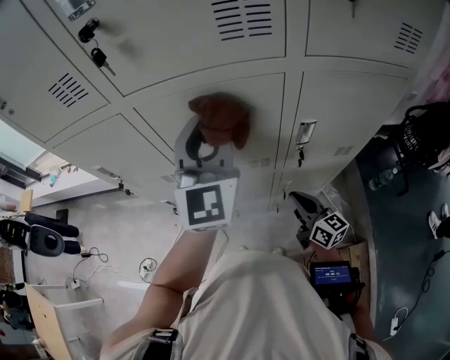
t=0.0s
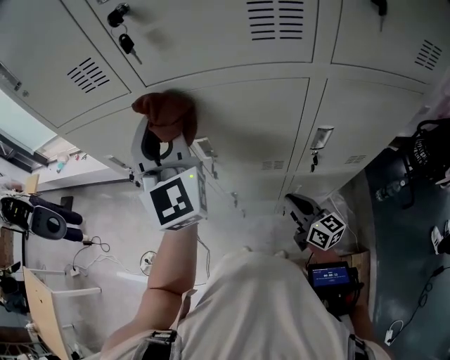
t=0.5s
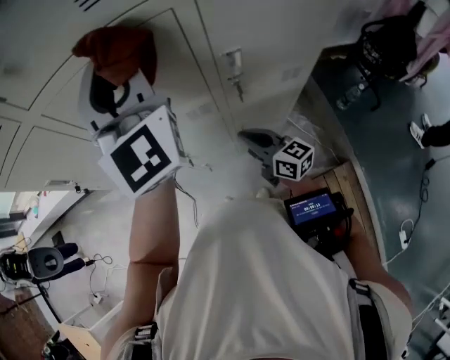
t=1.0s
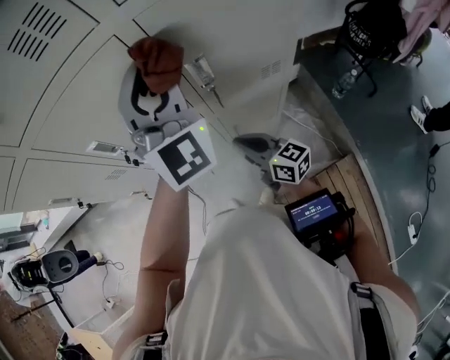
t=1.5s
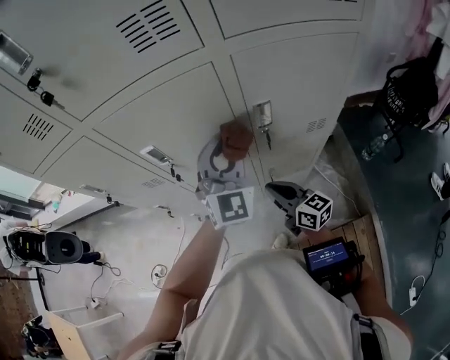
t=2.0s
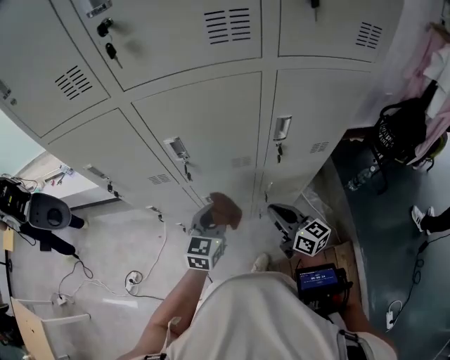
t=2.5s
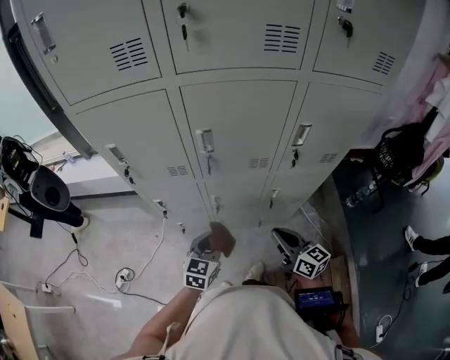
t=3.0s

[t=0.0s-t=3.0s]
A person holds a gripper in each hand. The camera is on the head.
t=0.0s to t=1.5s: The left gripper travels to the right by roughly 15 cm, and changes its angle by about 30 degrees.
t=1.5s to t=3.0s: The right gripper moves backward and to the left, about 10 cm. Meanwhile the left gripper goes about 40 cm downward, to the left and backward, and angles its fingers downward, by about 40 degrees.

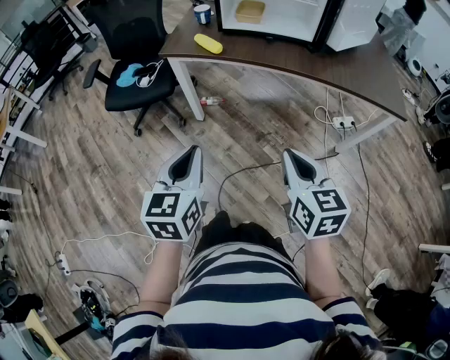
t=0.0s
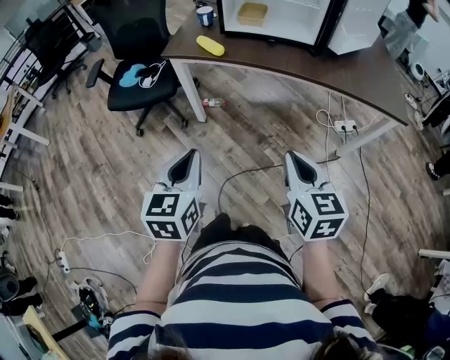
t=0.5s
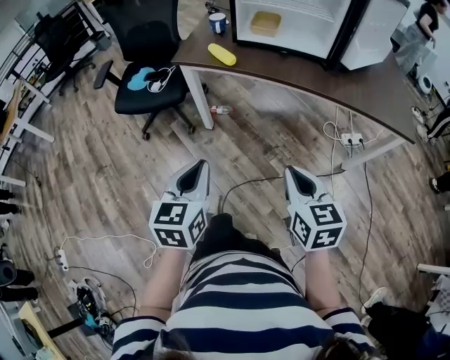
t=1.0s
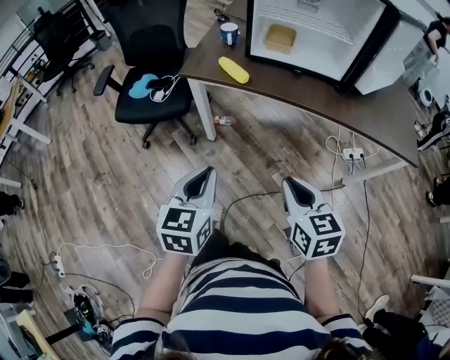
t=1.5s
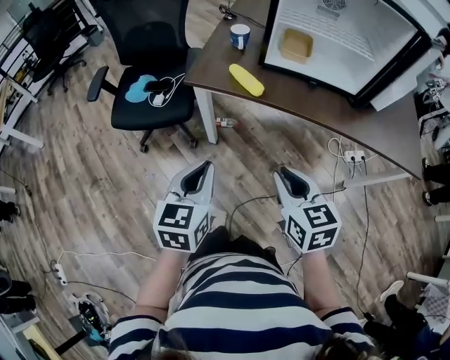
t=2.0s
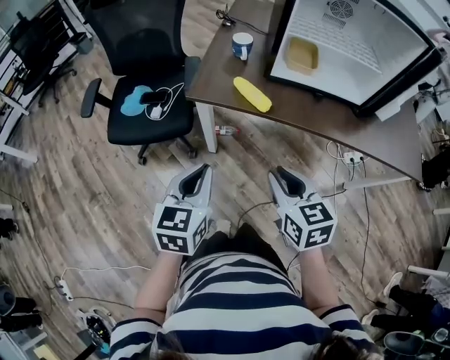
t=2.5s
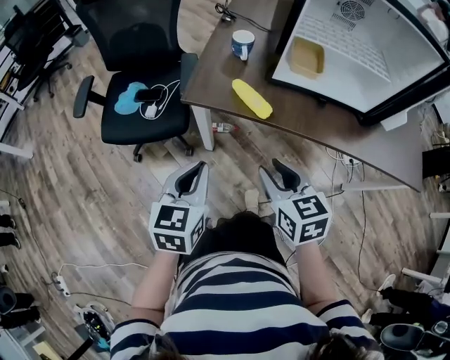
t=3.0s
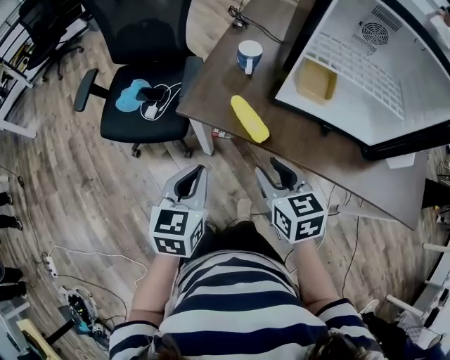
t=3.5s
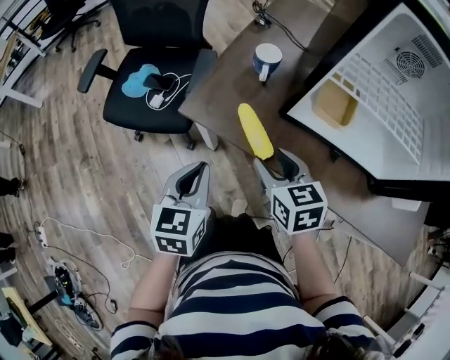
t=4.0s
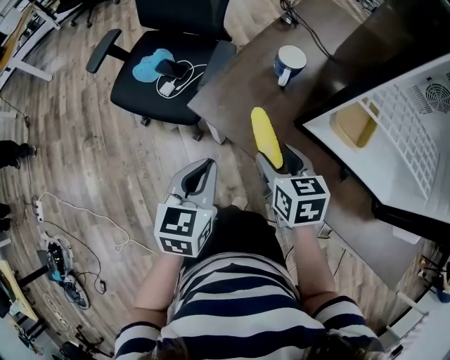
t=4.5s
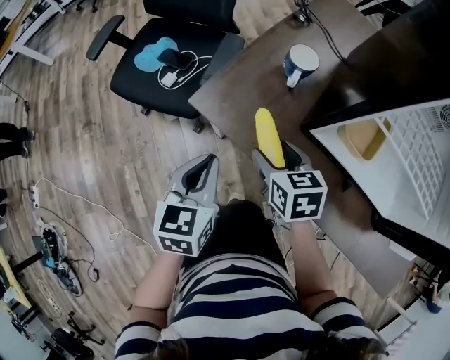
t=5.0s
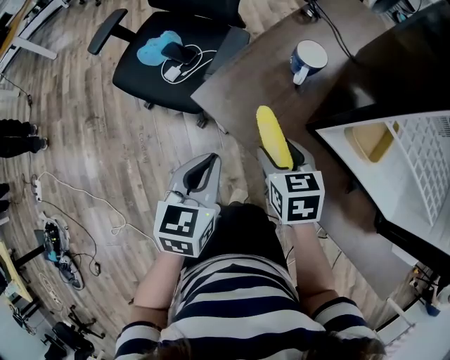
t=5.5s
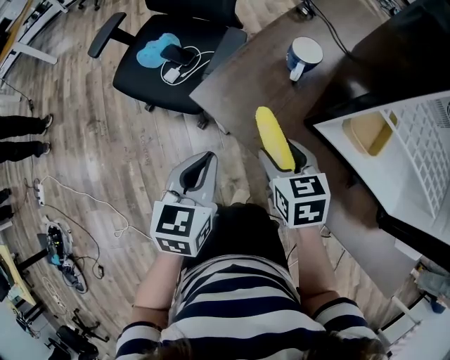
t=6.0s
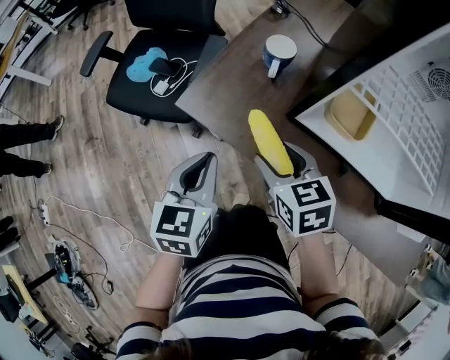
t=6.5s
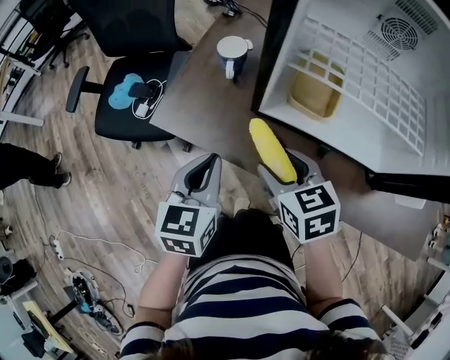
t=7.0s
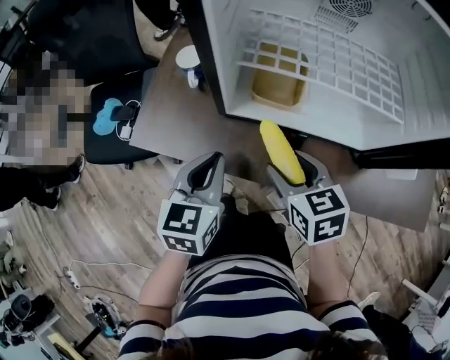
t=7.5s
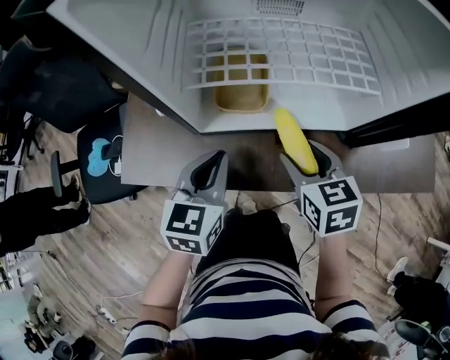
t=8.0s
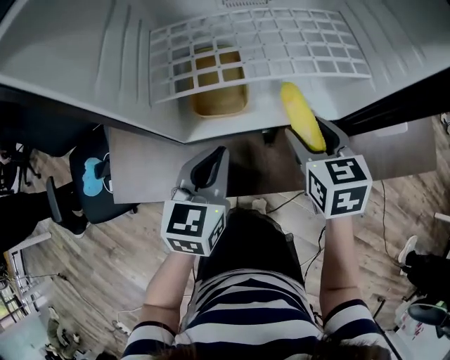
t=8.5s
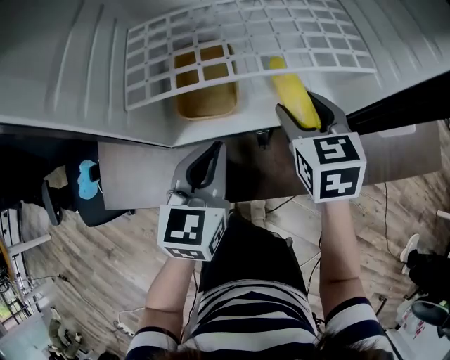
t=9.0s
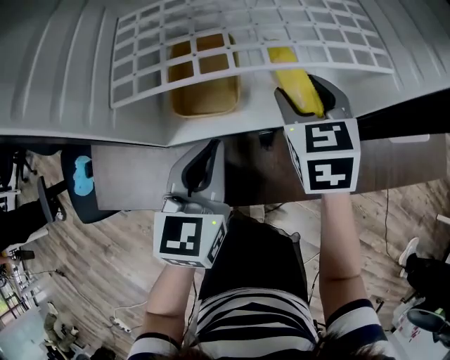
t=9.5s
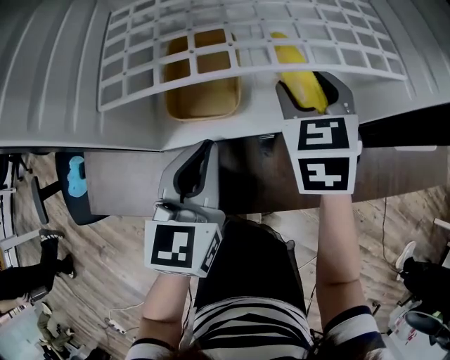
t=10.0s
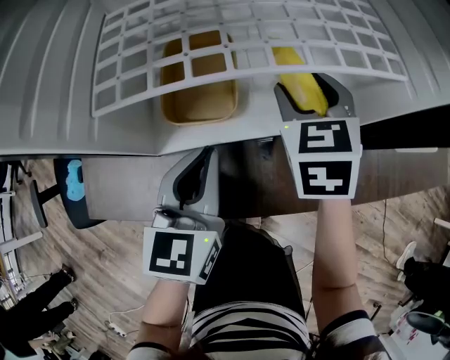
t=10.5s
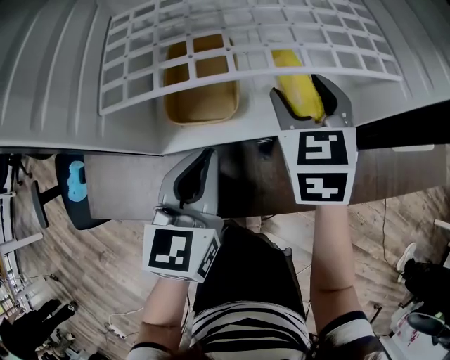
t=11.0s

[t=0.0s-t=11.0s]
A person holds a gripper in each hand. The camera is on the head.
t=0.0s to t=2.0s: Both grippers move forward and to the left, roughly 25 cm.
t=2.0s to t=3.5s: The grippers both shift forward by roughly 20 cm.
t=3.5s to t=5.5s: The right gripper moves forward and downward, some 20 cm, and swivels some 20 degrees; the left gripper shifts approximately 10 cm forward and downward.
t=5.5s to t=7.5s: The right gripper shifts roughly 20 cm to the right and backward, and rotates roughly 20 degrees. The left gripper is displaced to the right by about 20 cm, and changes its angle by about 30 degrees.
t=7.5s to t=9.0s: The grippers both shift to the right and forward by roughly 15 cm. The right gripper turns by some 30 degrees.
t=9.0s to t=11.0s: The grippers stay close to where they were, moving slightly.

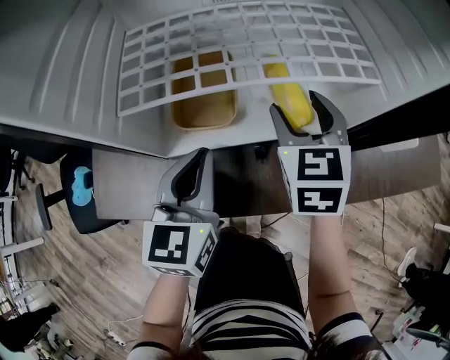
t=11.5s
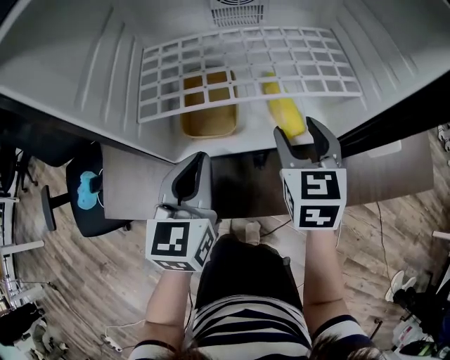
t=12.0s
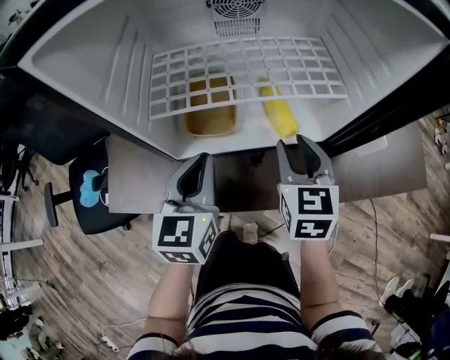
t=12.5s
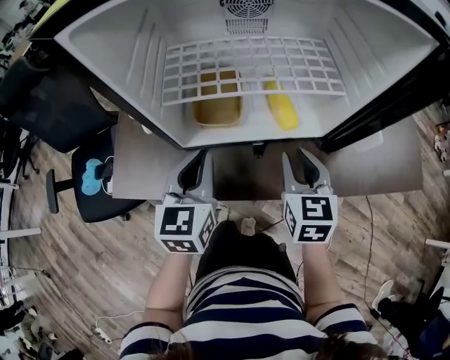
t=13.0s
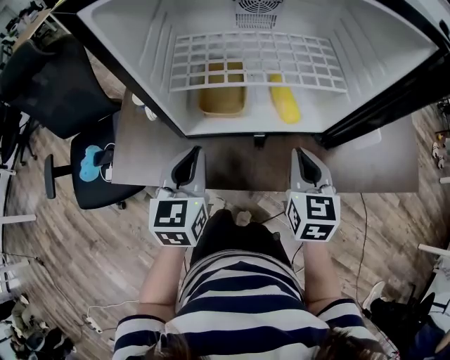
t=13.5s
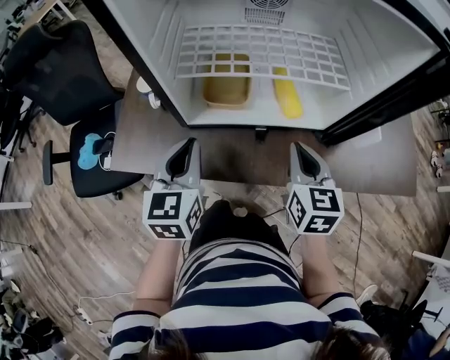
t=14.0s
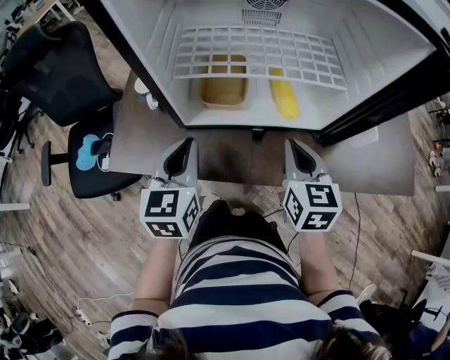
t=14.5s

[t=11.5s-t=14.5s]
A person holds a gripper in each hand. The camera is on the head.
t=11.5s to t=13.0s: The right gripper is displaced backward by some 10 cm, and closes; the left gripper changes place by some 5 cm.
t=13.0s to t=14.5s: The grippers stay close to where they were, moving slightly.

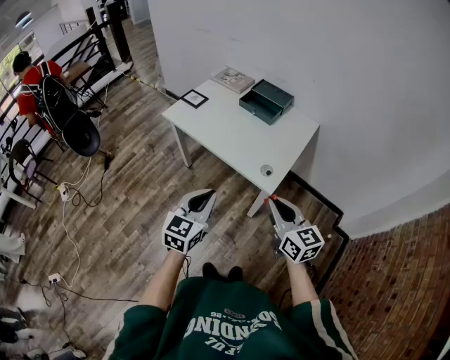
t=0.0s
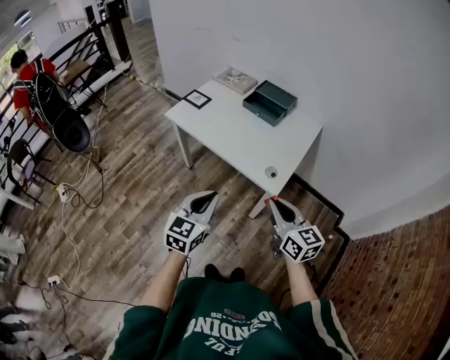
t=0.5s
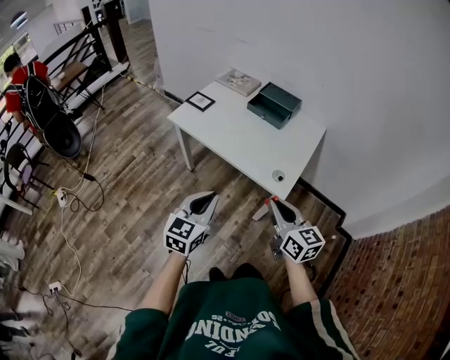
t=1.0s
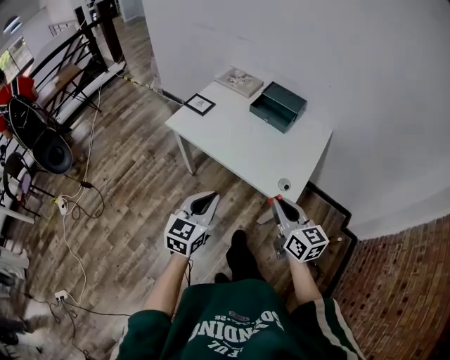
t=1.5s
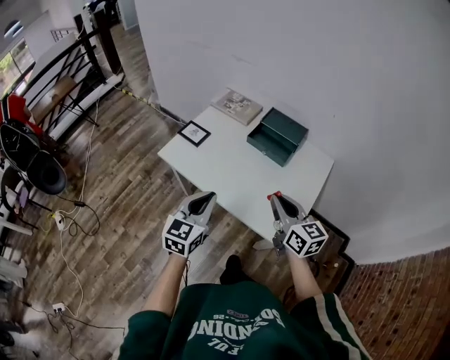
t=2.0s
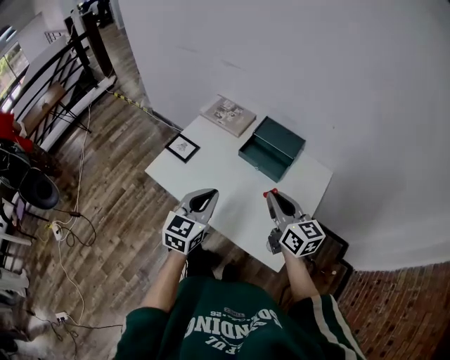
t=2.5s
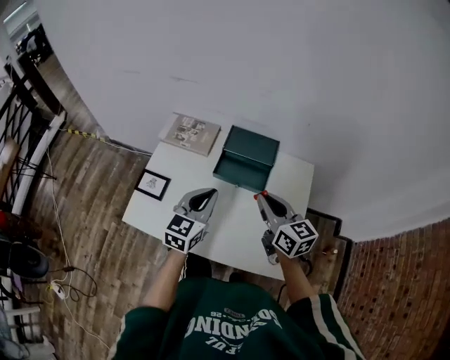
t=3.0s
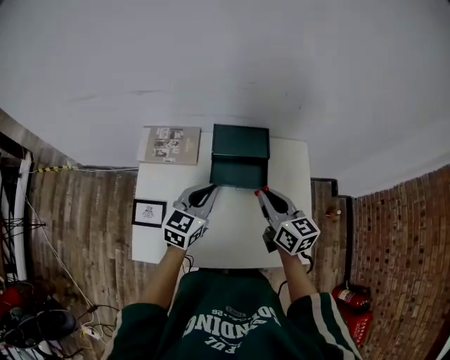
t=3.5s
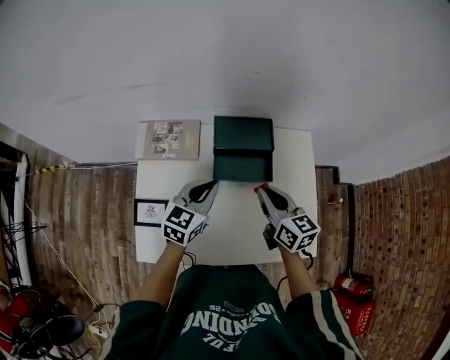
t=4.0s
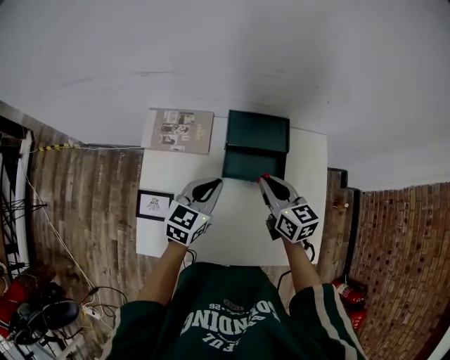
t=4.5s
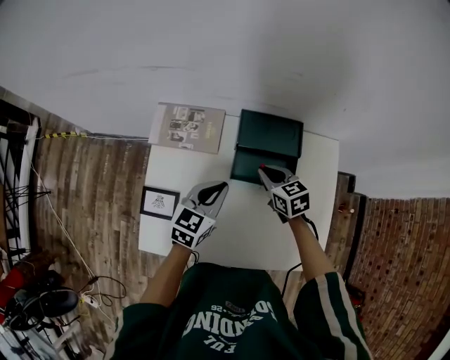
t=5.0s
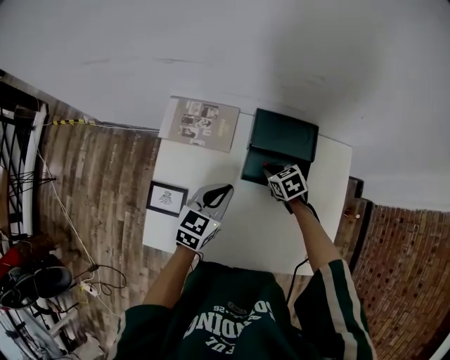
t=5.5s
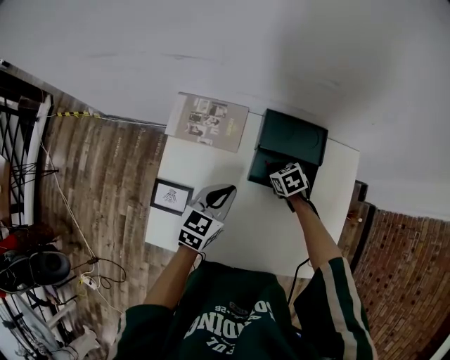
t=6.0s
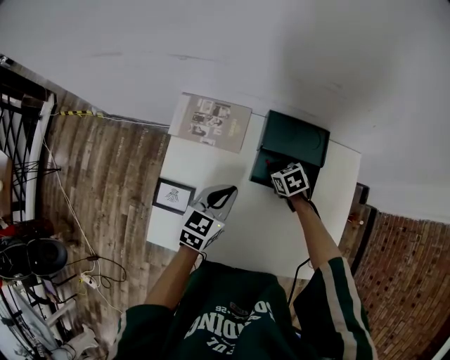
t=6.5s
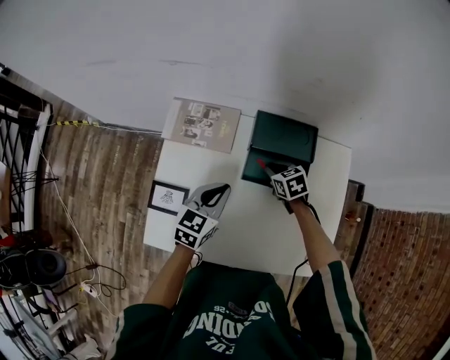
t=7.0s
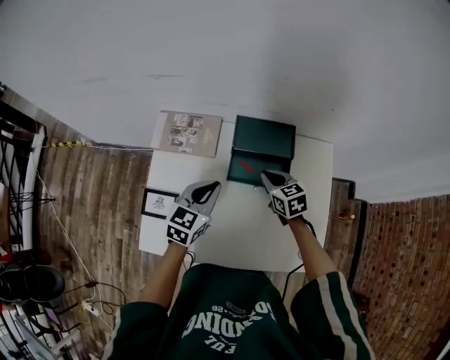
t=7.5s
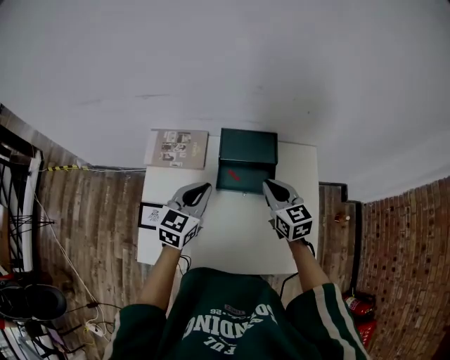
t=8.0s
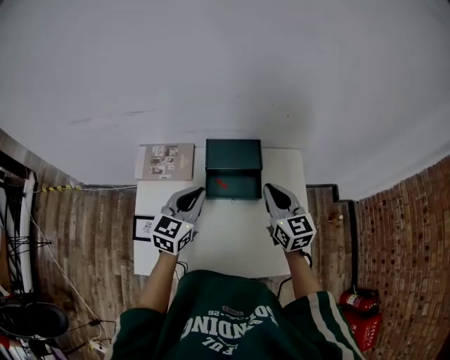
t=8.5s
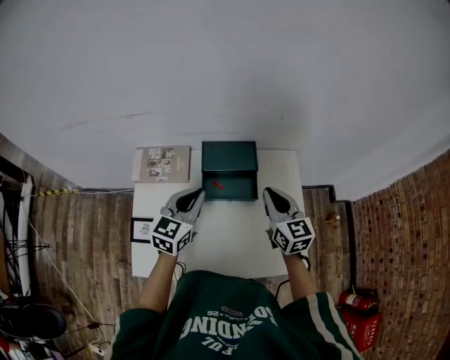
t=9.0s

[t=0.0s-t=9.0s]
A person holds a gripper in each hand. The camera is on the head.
t=0.0s to t=2.0s: The grippers both shift forward by some 25 cm.
t=2.0s to t=4.5s: The right gripper shifts by about 35 cm, and turns by some 30 degrees; the left gripper moves about 40 cm, and rotates some 40 degrees.
t=4.5s to t=7.0s: The right gripper goes some 20 cm downward and forward, and tilts its fingers about 30 degrees downward.
t=7.0s to t=9.0s: The right gripper is displaced upward, to the right and backward by some 30 cm, and tilts its fingers approximately 40 degrees upward. The left gripper shifts some 15 cm upward and to the right.
